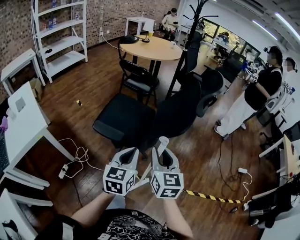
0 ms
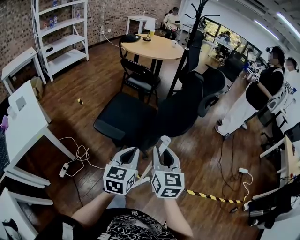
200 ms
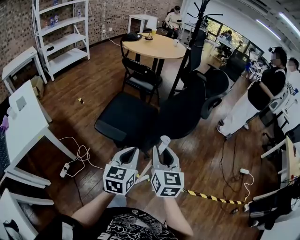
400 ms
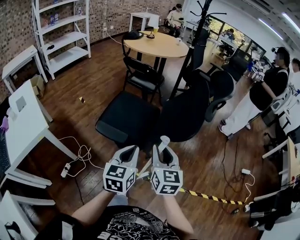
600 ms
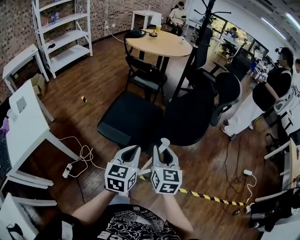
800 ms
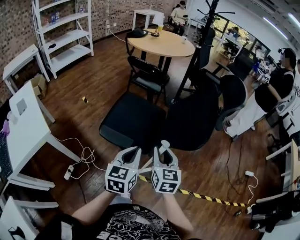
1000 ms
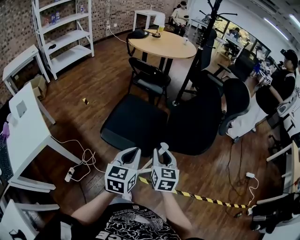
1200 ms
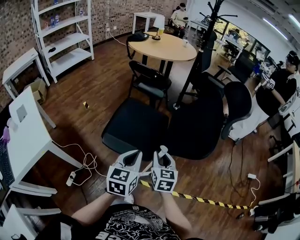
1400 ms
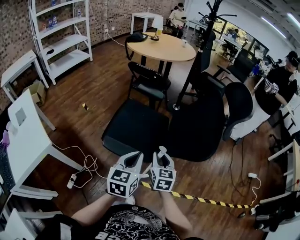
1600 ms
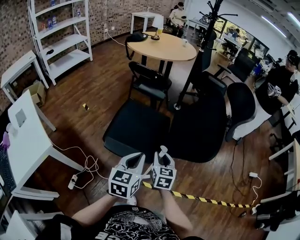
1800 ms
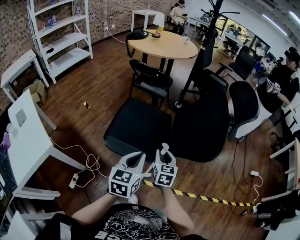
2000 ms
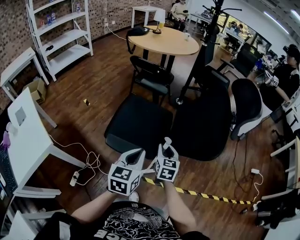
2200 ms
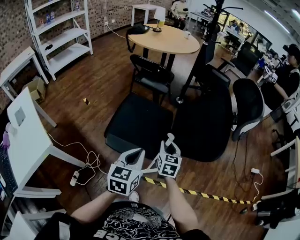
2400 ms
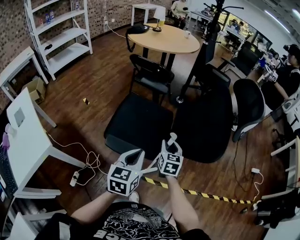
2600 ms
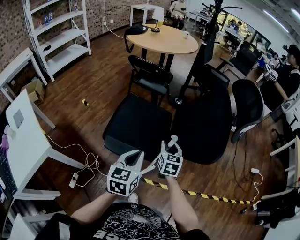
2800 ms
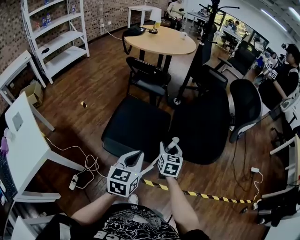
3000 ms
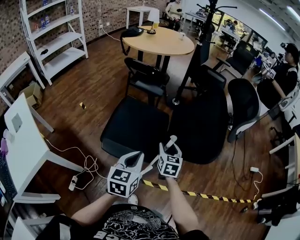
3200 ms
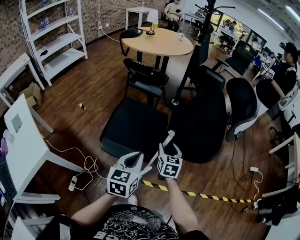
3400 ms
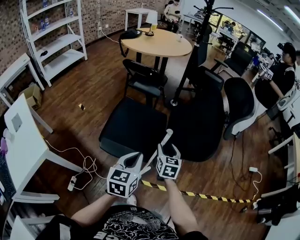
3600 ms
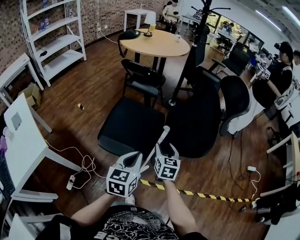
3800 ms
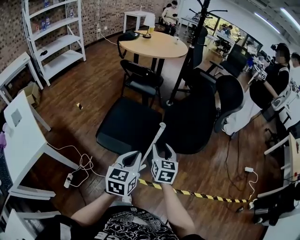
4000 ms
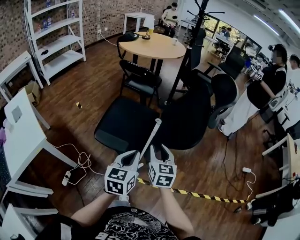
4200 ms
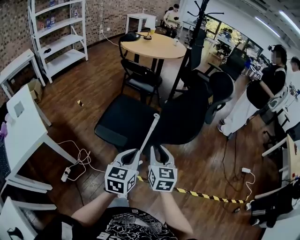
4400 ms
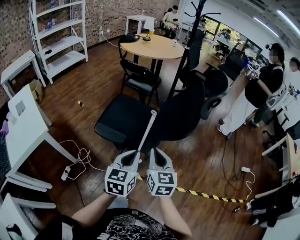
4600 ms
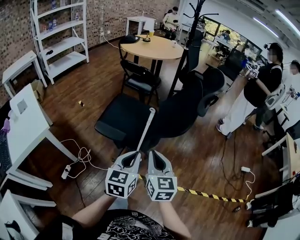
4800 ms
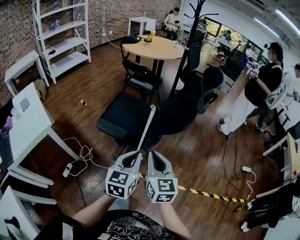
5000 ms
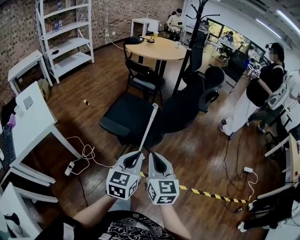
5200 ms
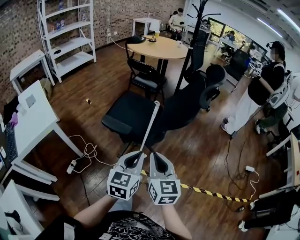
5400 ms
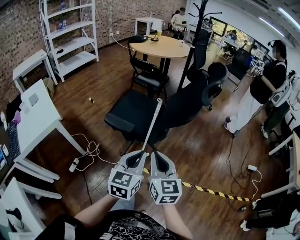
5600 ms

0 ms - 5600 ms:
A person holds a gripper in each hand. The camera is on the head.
0 ms - 1400 ms: The right gripper shifts approximately 20 cm forward, downward and to the left. Meanwhile the left gripper goes some 15 cm forward and to the left.
1400 ms - 2800 ms: The left gripper changes place by approximately 5 cm. Meanwhile the right gripper goes approximately 10 cm forward and downward.
2800 ms - 4200 ms: The right gripper is displaced backward and upward by some 15 cm, while the left gripper goes some 10 cm to the right and backward.
4200 ms - 5600 ms: The two grippers go some 20 cm backward. The right gripper closes its fingers.

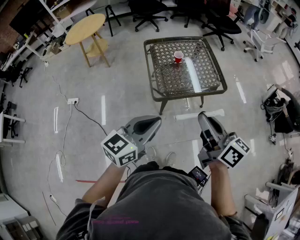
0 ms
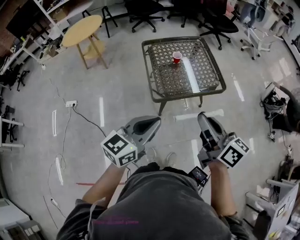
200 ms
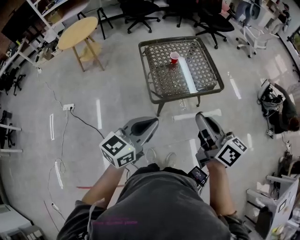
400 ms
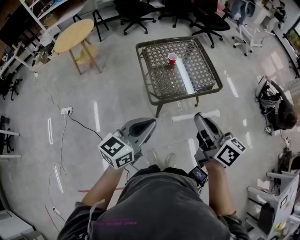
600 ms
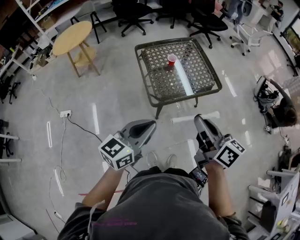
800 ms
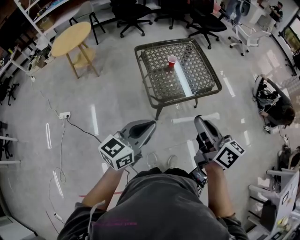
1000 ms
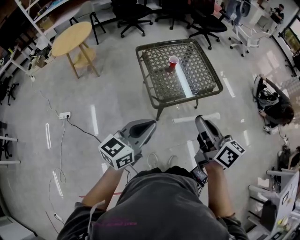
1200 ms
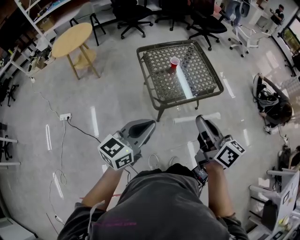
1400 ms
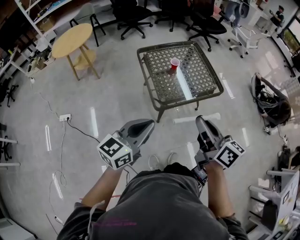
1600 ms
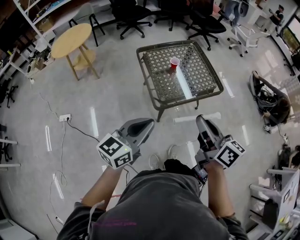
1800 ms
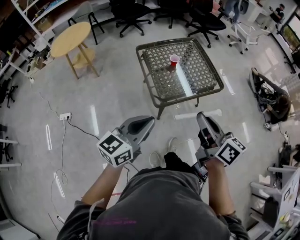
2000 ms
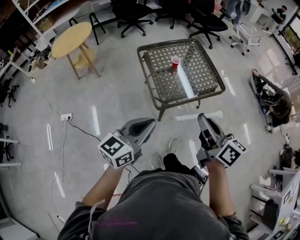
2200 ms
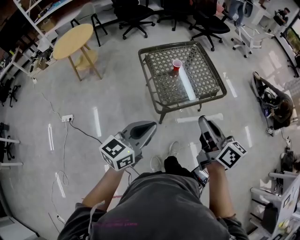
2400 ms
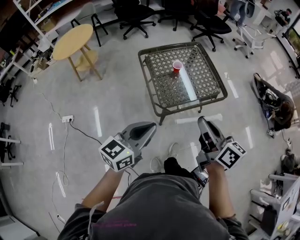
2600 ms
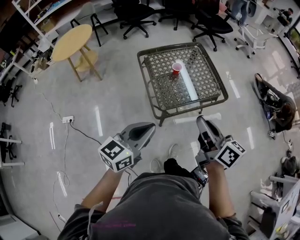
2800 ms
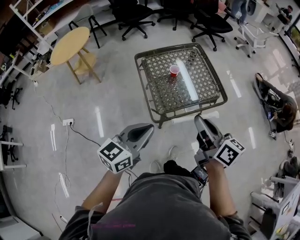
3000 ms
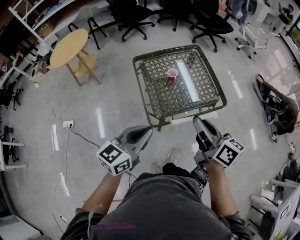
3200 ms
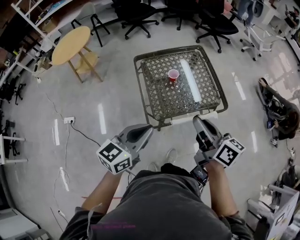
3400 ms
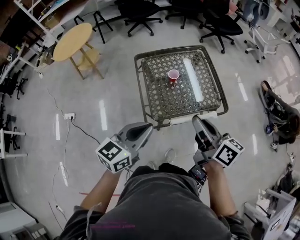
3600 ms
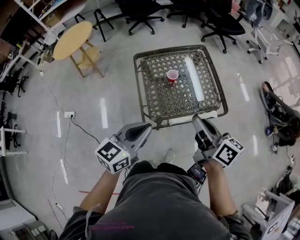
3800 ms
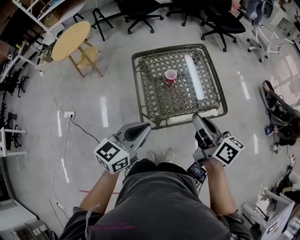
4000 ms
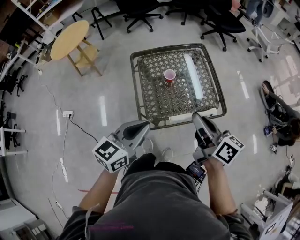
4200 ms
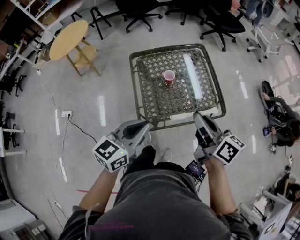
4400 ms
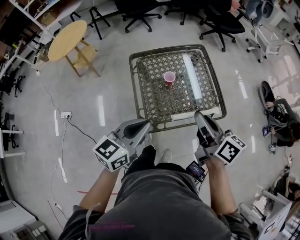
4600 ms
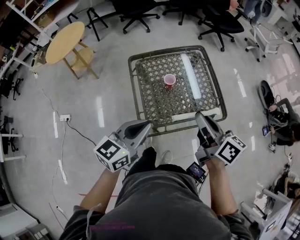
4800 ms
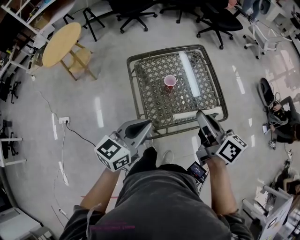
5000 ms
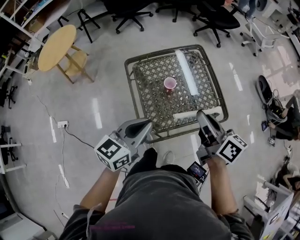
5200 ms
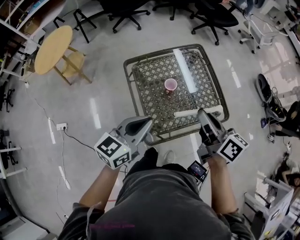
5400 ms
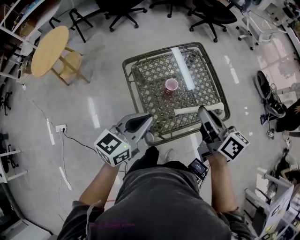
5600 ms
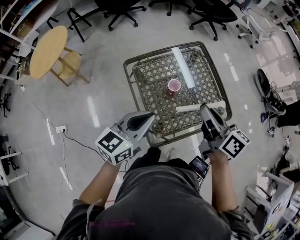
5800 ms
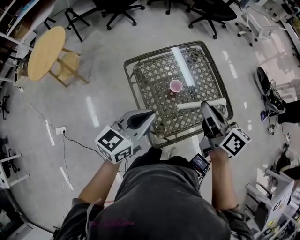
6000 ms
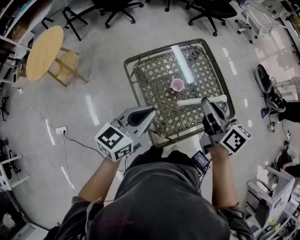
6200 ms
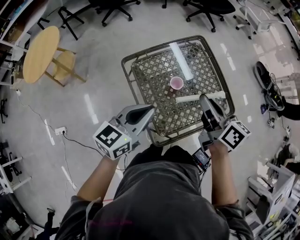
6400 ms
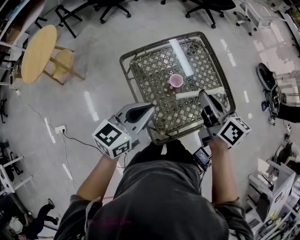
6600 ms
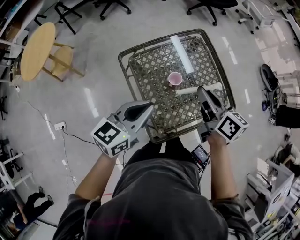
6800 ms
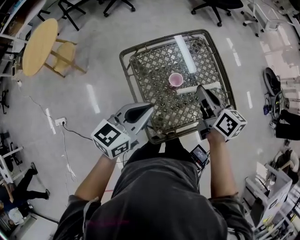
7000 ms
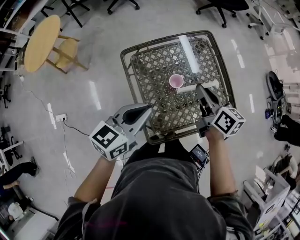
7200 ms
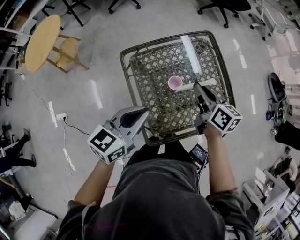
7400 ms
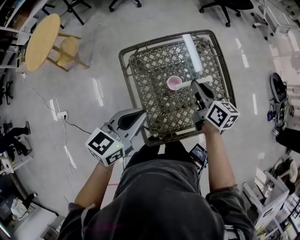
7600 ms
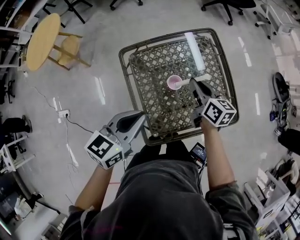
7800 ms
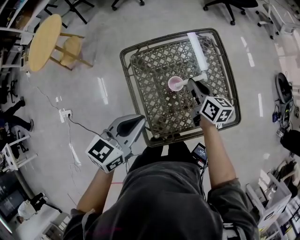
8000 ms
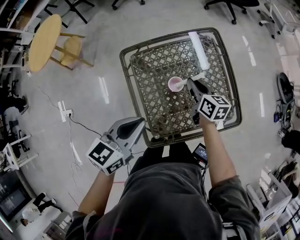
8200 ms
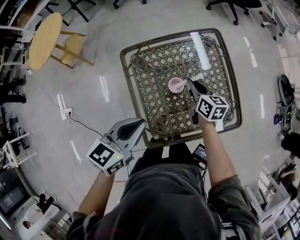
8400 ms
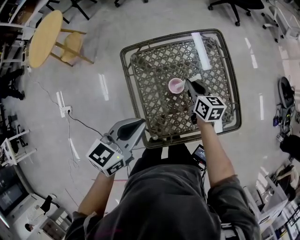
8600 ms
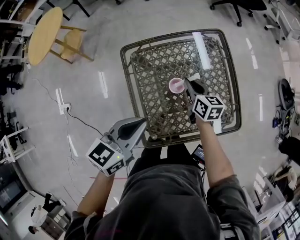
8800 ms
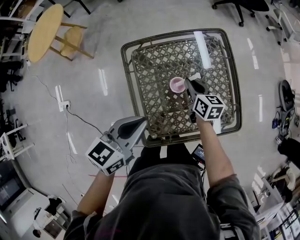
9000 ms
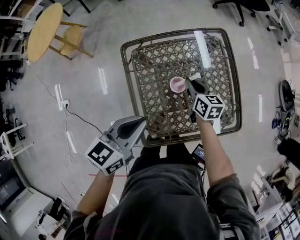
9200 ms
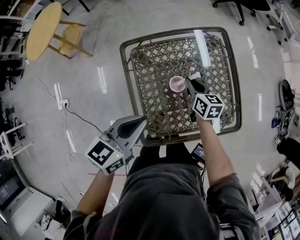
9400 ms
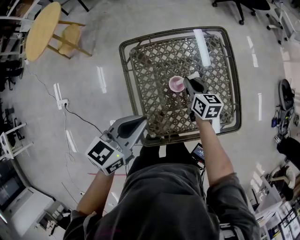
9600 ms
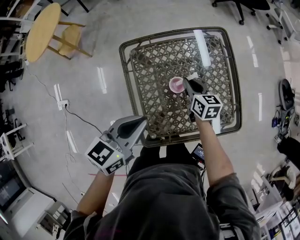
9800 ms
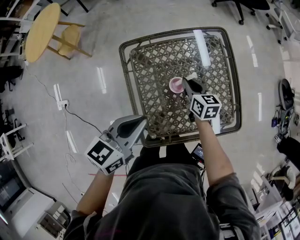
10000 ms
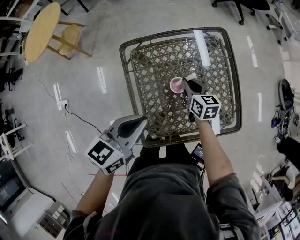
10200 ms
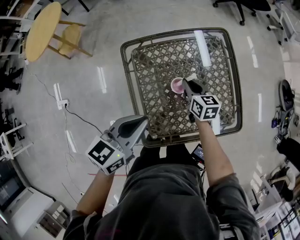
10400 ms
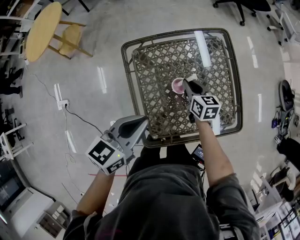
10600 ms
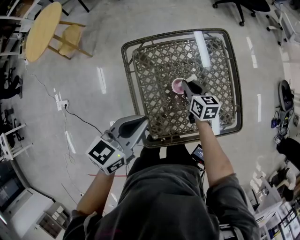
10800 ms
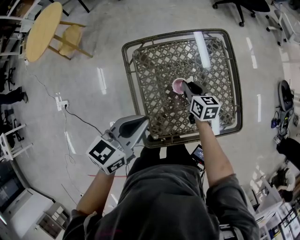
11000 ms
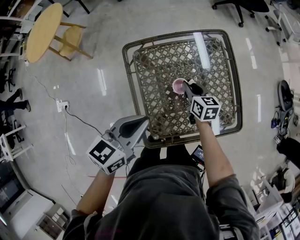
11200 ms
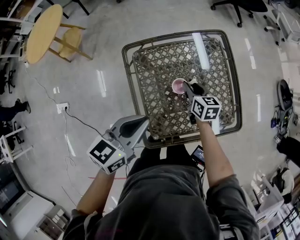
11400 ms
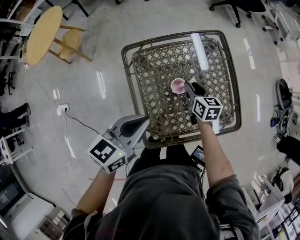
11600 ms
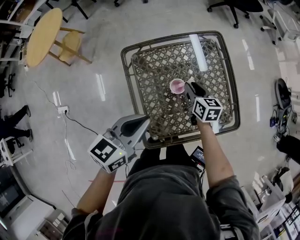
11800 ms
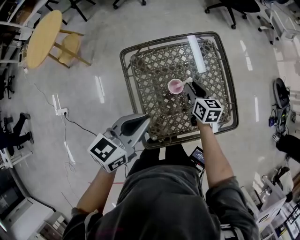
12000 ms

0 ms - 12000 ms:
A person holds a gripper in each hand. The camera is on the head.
0 ms - 1600 ms: Both grippers travel together to the left, roughly 10 cm.
1600 ms - 3000 ms: The two grippers go about 10 cm forward.
3000 ms - 4400 ms: Both grippers move forward and to the right, some 15 cm.
4400 ms - 6000 ms: The grippers both shift forward and to the left by some 20 cm.
6000 ms - 7600 ms: The right gripper shifts approximately 20 cm downward and forward; the left gripper changes place by approximately 5 cm.
7600 ms - 9000 ms: The right gripper moves downward, some 10 cm.
9000 ms - 10400 ms: The grippers move only a little.
10400 ms - 12000 ms: The right gripper changes place by roughly 5 cm.

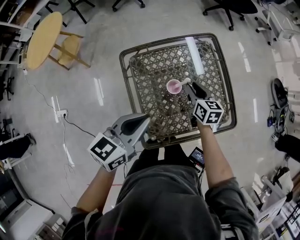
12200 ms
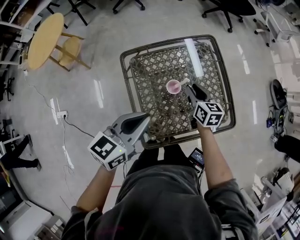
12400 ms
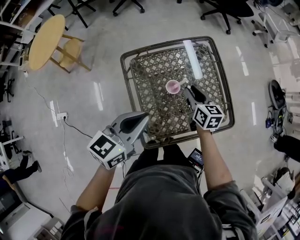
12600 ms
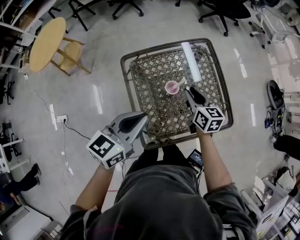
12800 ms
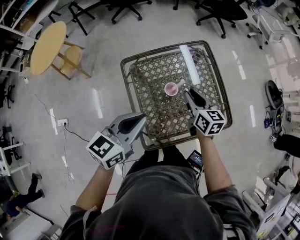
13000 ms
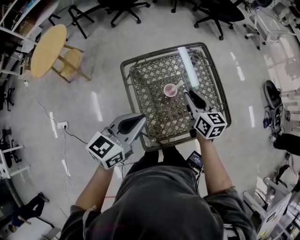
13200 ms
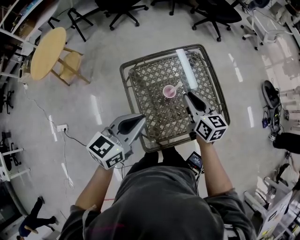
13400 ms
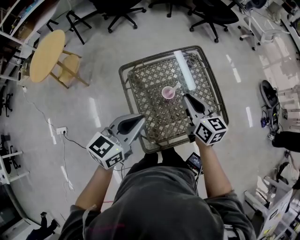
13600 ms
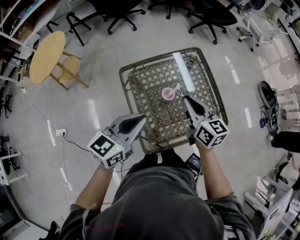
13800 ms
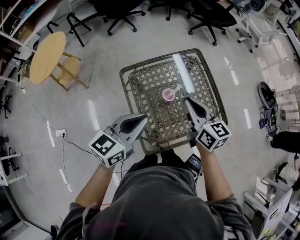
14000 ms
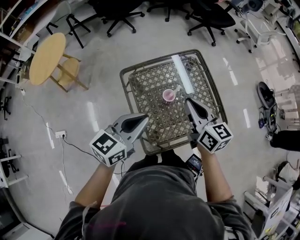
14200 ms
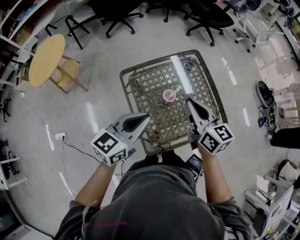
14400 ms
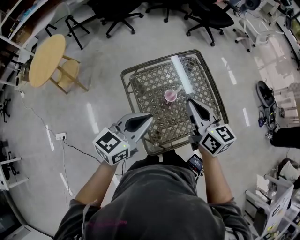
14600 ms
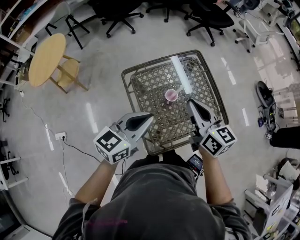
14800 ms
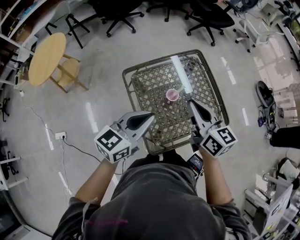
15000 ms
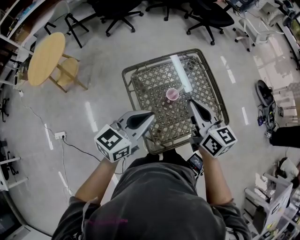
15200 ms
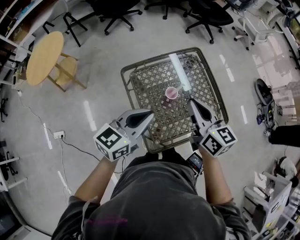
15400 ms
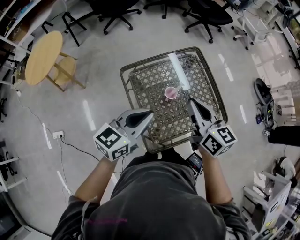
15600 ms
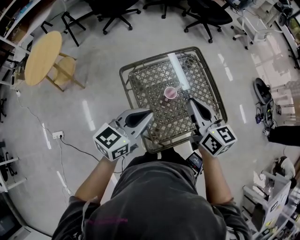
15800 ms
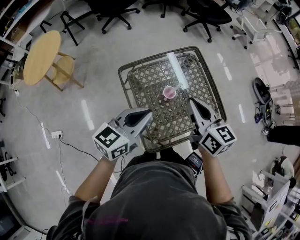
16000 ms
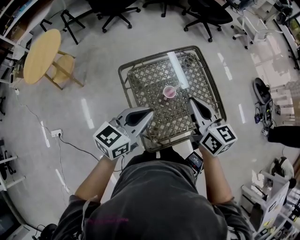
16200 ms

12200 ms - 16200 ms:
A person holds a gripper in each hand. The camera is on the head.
12200 ms - 13600 ms: The left gripper shifts about 5 cm upward. The right gripper goes some 20 cm upward and backward.
13600 ms - 14800 ms: The right gripper travels upward by about 10 cm.
14800 ms - 16200 ms: The grippers stay close to where they were, moving slightly.

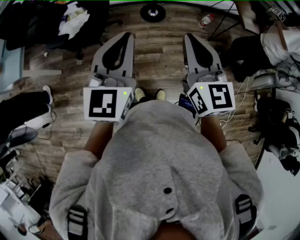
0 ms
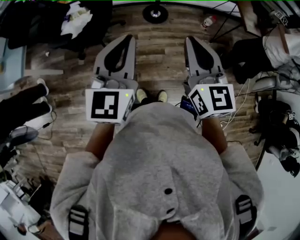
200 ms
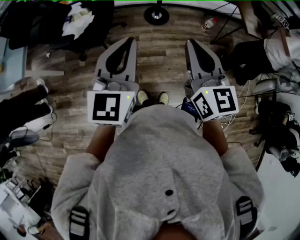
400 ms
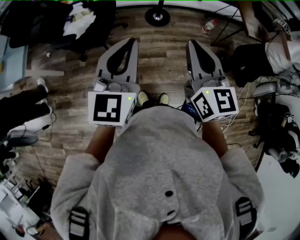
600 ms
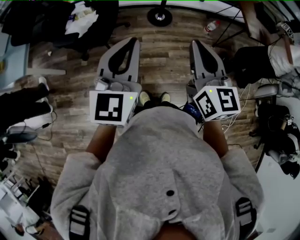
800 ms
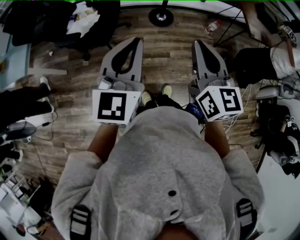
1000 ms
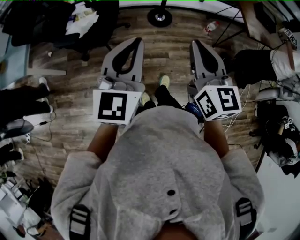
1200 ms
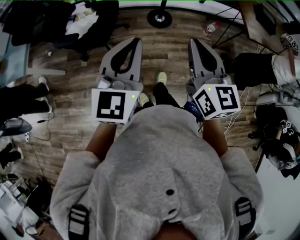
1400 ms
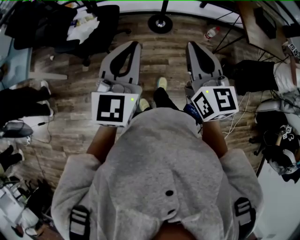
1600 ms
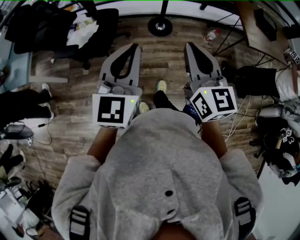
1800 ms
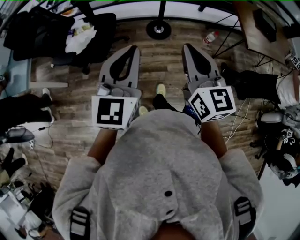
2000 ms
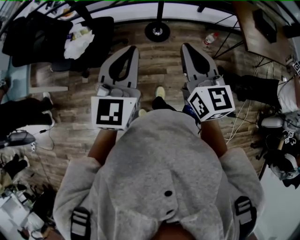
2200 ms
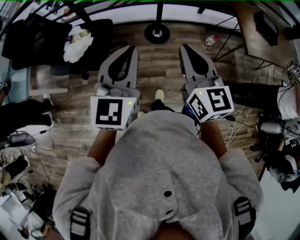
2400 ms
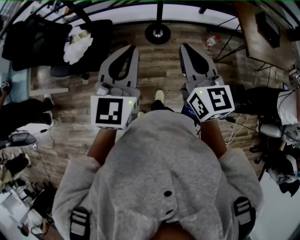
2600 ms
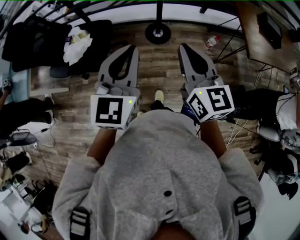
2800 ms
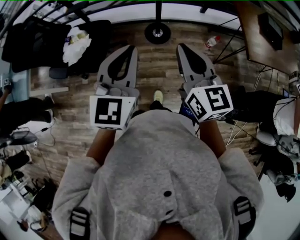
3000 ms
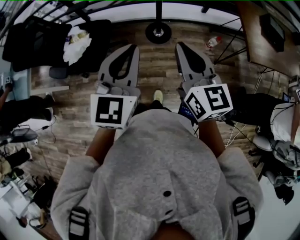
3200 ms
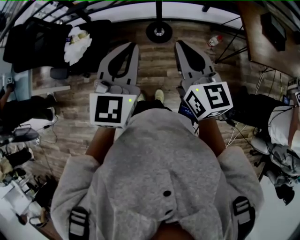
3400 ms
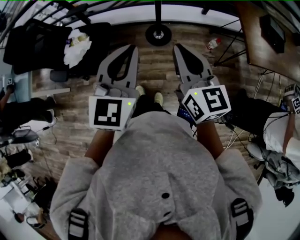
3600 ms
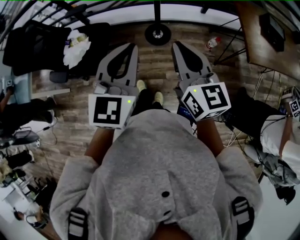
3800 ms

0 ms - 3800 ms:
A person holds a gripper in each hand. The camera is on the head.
0 ms - 1200 ms: The two grippers go some 5 cm to the left.
1200 ms - 2600 ms: Both grippers travel together forward and to the right, approximately 20 cm.
2600 ms - 3800 ms: The left gripper moves forward and to the right, approximately 10 cm, while the right gripper travels forward by some 5 cm.
